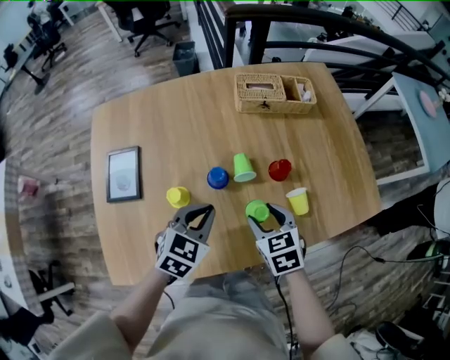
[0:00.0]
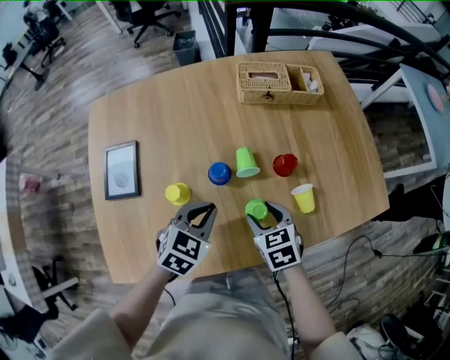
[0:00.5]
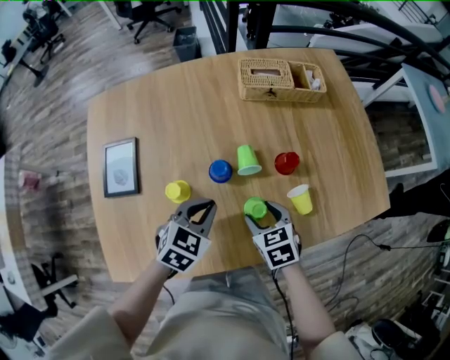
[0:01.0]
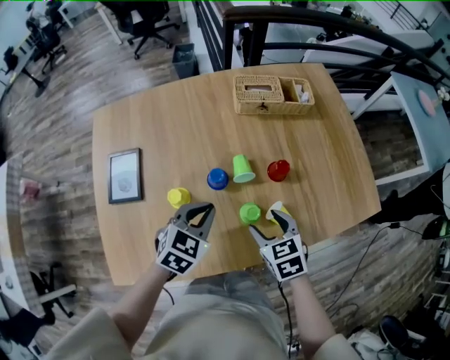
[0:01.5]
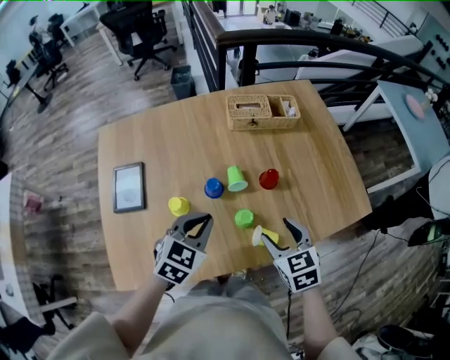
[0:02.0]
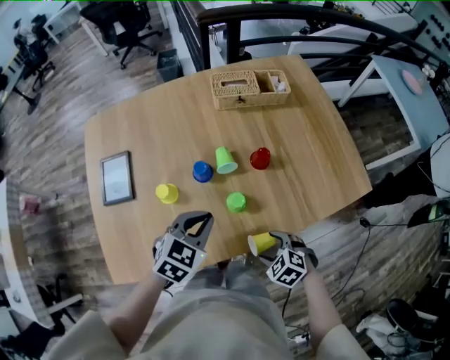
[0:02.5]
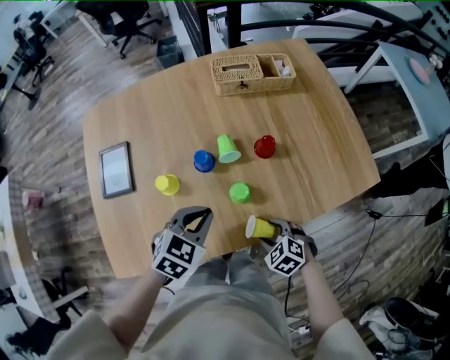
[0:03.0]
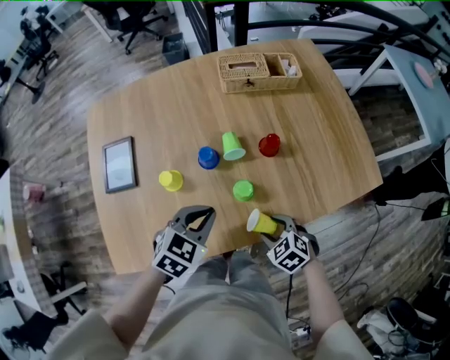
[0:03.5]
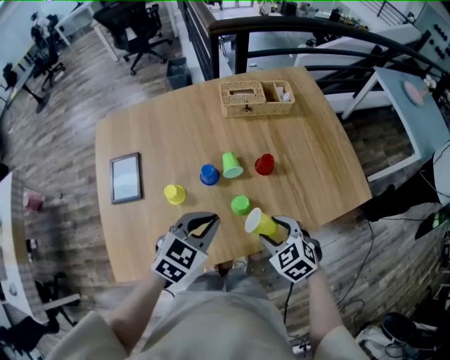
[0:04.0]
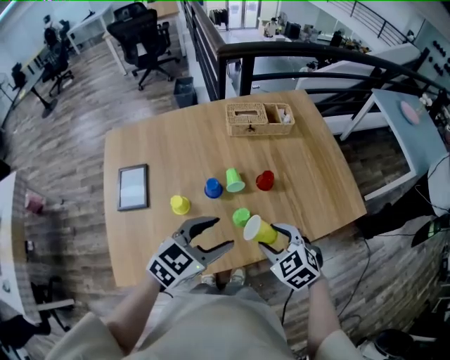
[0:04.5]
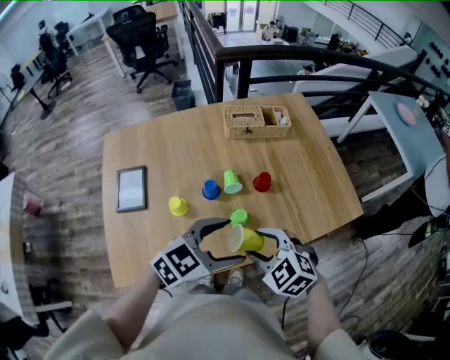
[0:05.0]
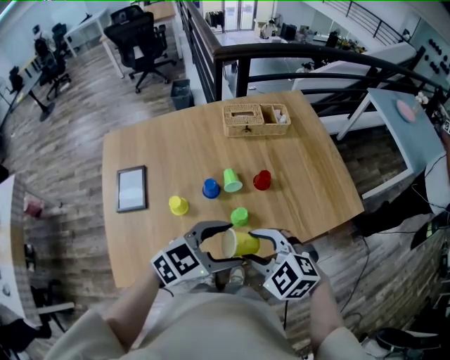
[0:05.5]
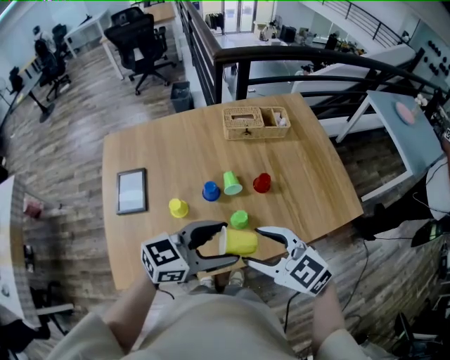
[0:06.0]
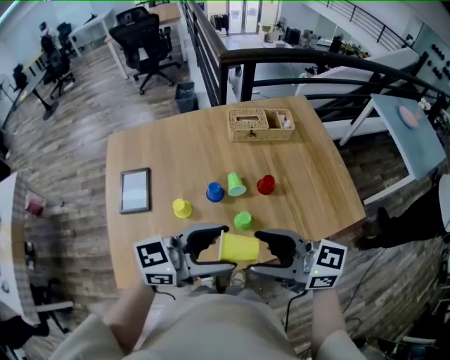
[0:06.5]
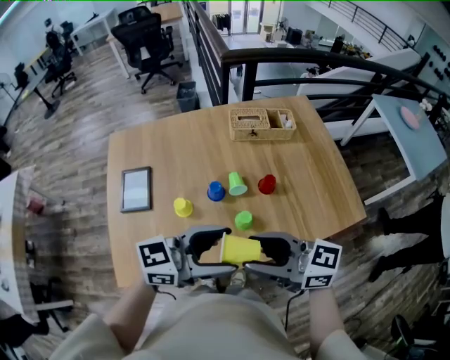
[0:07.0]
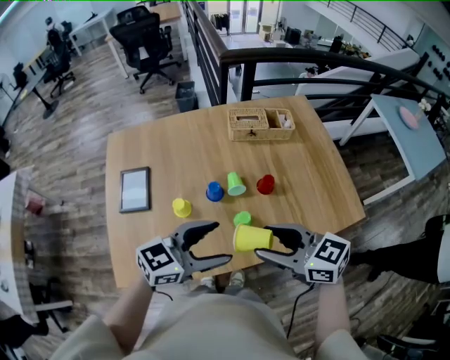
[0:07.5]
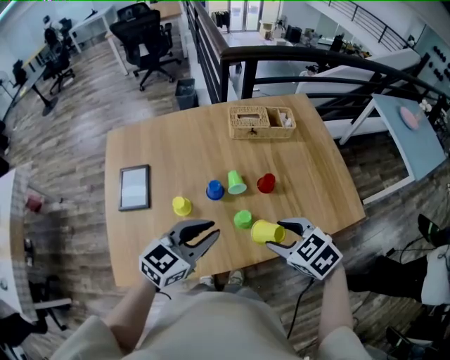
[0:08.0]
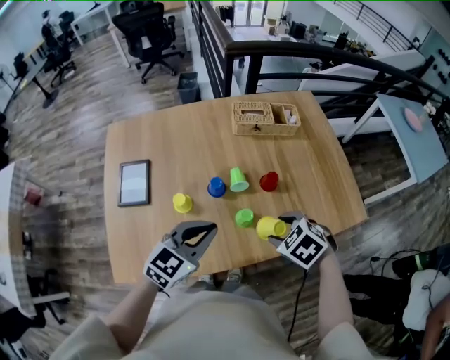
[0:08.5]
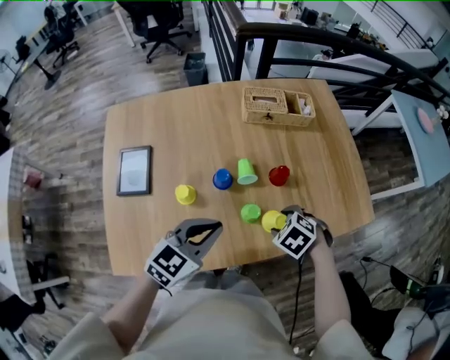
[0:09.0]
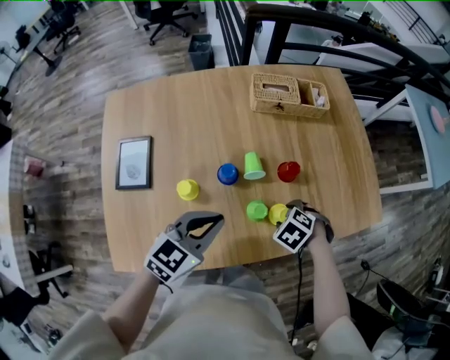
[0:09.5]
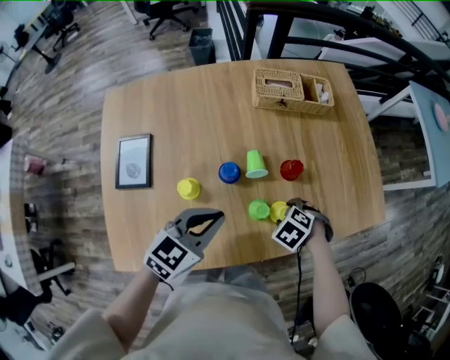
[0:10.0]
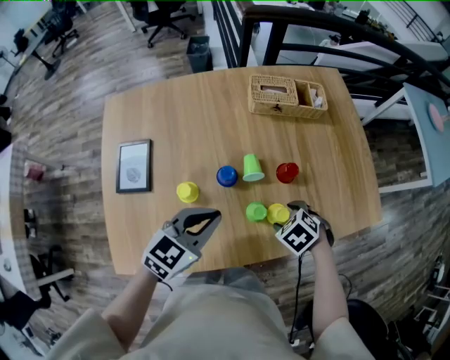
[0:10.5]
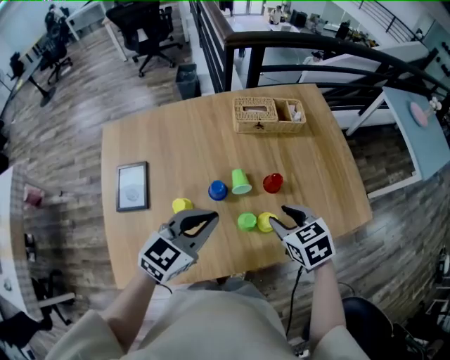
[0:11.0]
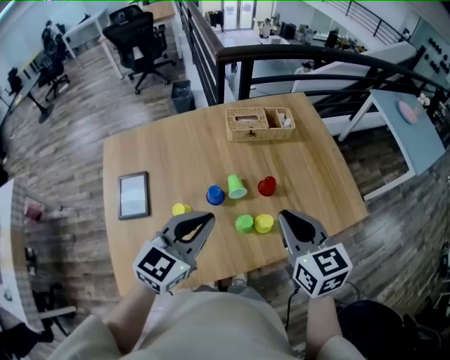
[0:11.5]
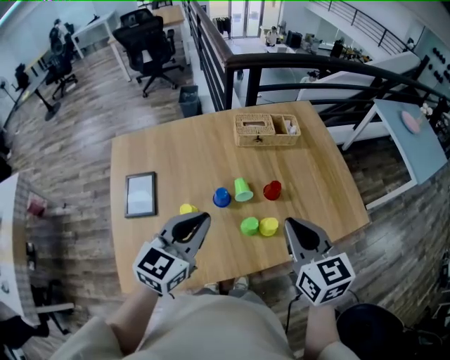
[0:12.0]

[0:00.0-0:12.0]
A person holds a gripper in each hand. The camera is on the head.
0:00.0 to 0:02.0: The left gripper moves upward, roughly 5 cm; the right gripper is displaced upward, to the right and backward by approximately 10 cm.
0:02.0 to 0:04.0: The left gripper changes place by about 5 cm. The right gripper goes downward and returns, some 20 cm each way, and rotates about 20 degrees.
0:04.0 to 0:06.0: The right gripper shifts roughly 15 cm upward, and changes its angle by about 30 degrees. Meanwhile the left gripper travels upward by about 10 cm, turns by about 40 degrees, and opens up.
0:06.0 to 0:08.0: The right gripper moves some 10 cm, and changes its angle by some 30 degrees; the left gripper ends up about 5 cm from where it was, changes its angle by roughly 20 degrees, and closes.
0:08.0 to 0:10.0: The left gripper goes roughly 10 cm downward; the right gripper shifts some 20 cm downward, and points its fingers about 30 degrees further downward.
0:10.0 to 0:12.0: The left gripper shifts some 15 cm upward. Meanwhile the right gripper is displaced upward by approximately 30 cm, points its fingers about 60 degrees further upward, and closes.

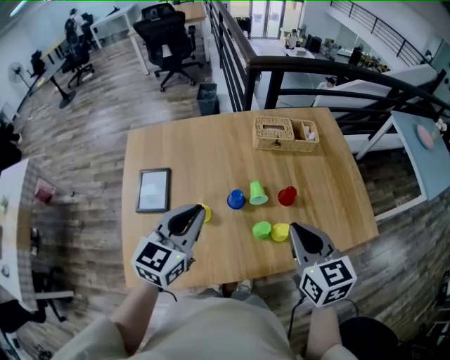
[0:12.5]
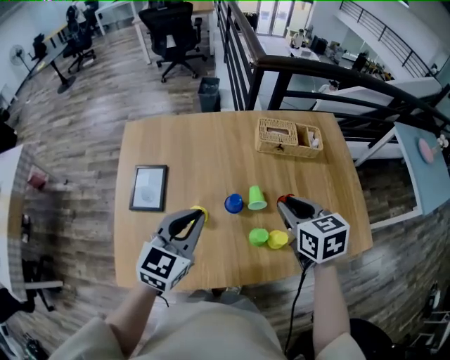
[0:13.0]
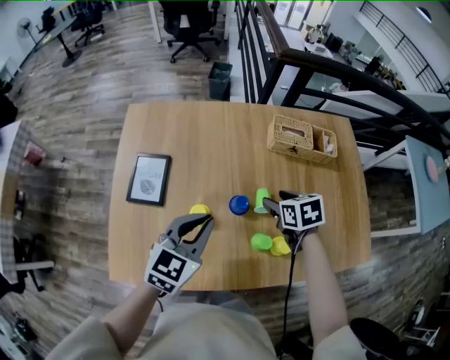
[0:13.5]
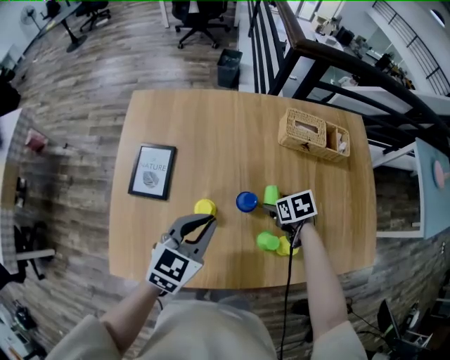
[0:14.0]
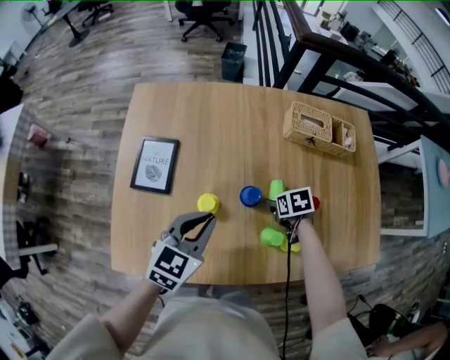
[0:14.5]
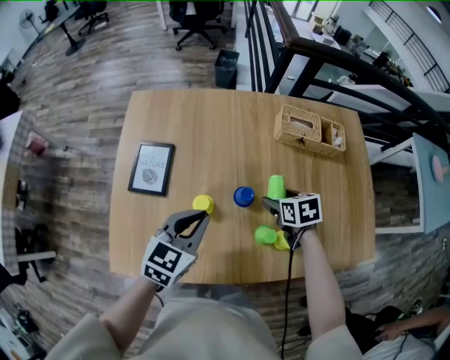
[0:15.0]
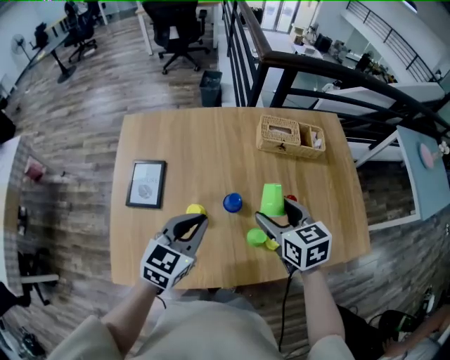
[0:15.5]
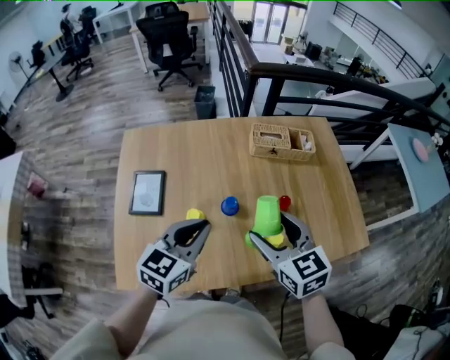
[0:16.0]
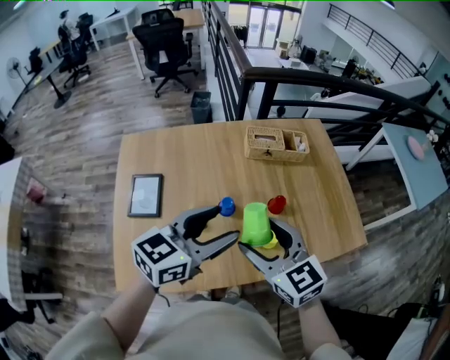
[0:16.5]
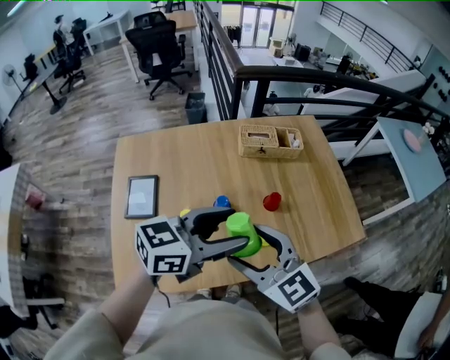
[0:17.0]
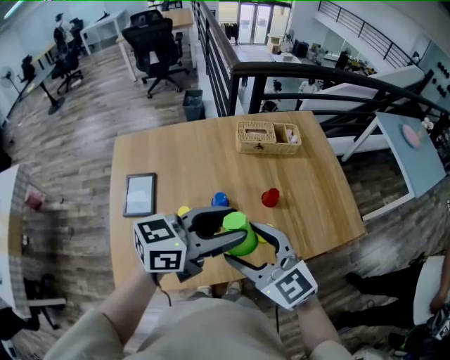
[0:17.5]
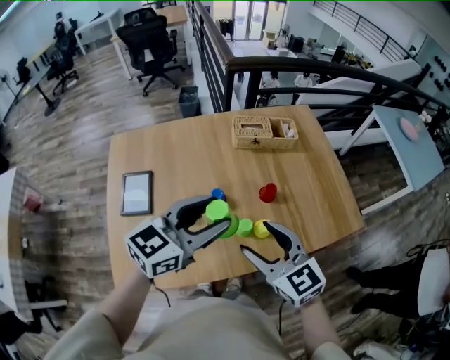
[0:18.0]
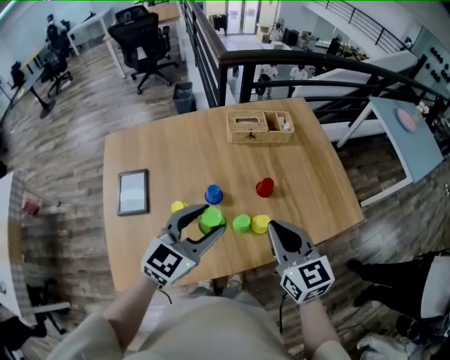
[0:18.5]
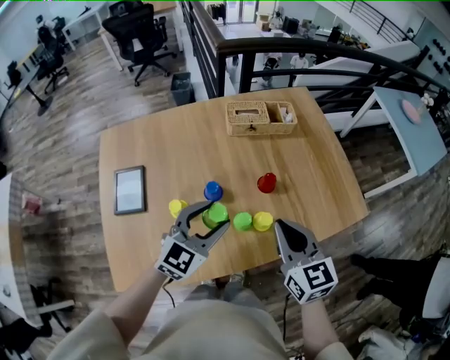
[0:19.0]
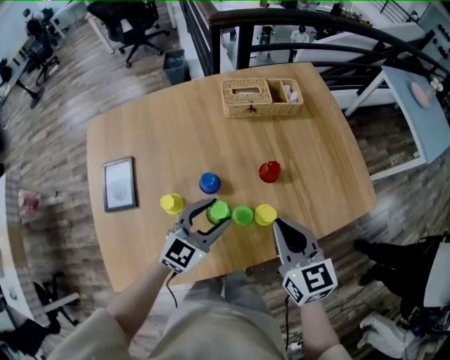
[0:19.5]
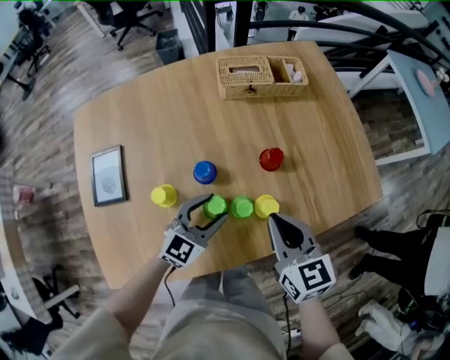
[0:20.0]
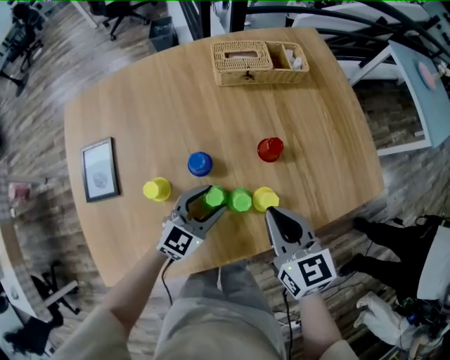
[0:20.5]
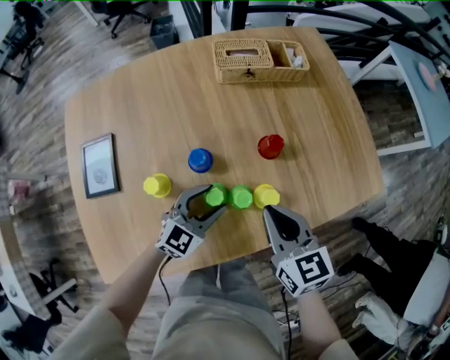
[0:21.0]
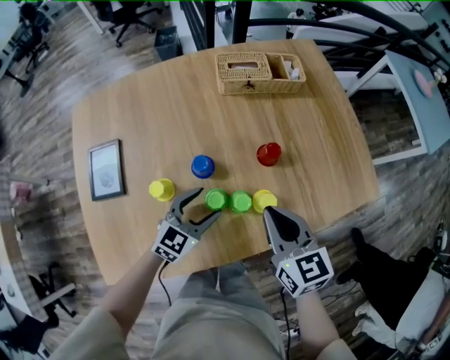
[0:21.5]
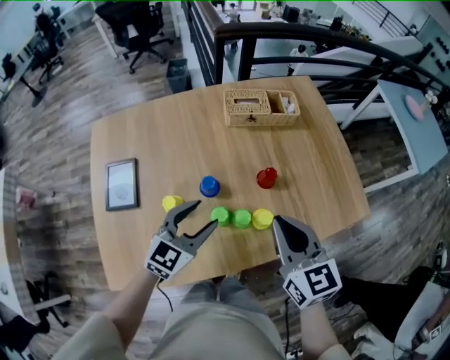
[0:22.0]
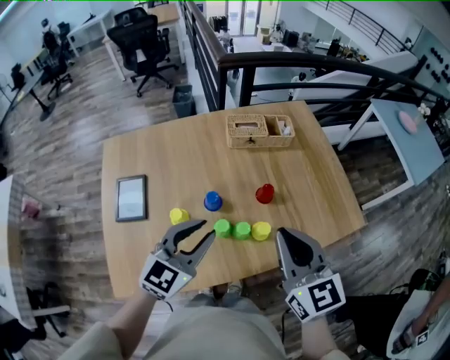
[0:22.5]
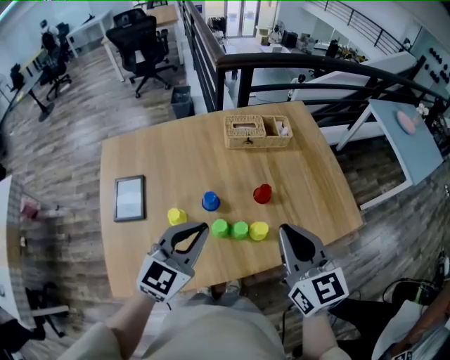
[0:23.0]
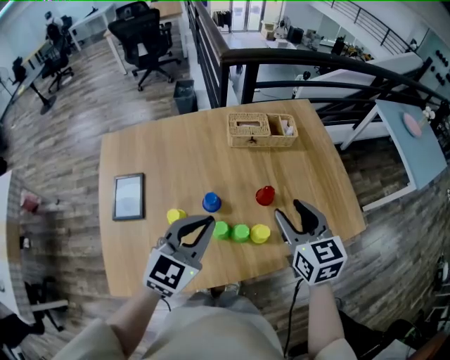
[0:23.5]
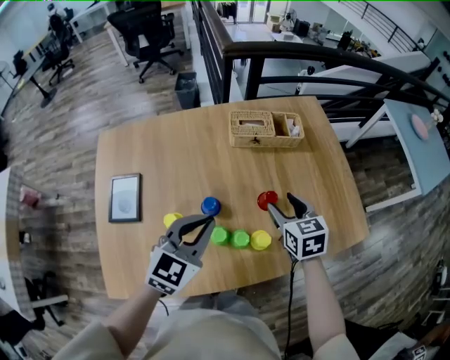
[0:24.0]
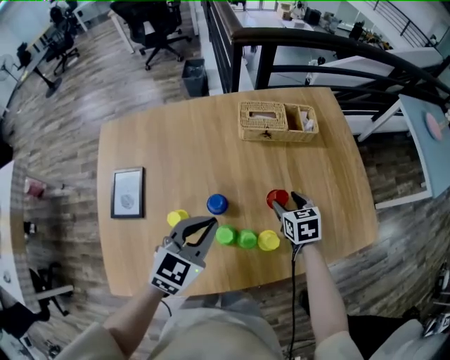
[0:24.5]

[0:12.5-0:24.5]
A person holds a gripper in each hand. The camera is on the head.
0:12.5 to 0:14.5: The right gripper travels downward and forward by some 35 cm, angles its fingers downward, by roughly 40 degrees, and opens up, while the left gripper heads downward, covering approximately 15 cm.
0:14.5 to 0:16.5: The left gripper goes approximately 20 cm upward and to the right, changes its angle by some 30 degrees, and opens up, while the right gripper travels upward and backward by roughly 40 cm, and points its fingers about 50 degrees further upward.
0:16.5 to 0:18.5: The right gripper is displaced to the right by about 10 cm, and closes up, while the left gripper travels downward by some 5 cm, and turns by approximately 20 degrees.
0:18.5 to 0:20.5: The left gripper moves downward, some 25 cm; the right gripper travels downward by about 15 cm.
0:20.5 to 0:22.5: The two grippers go about 25 cm upward.
0:22.5 to 0:24.5: The right gripper moves downward and forward, some 35 cm, angles its fingers downward, by approximately 40 degrees, and opens its fingers, while the left gripper moves forward and downward, about 10 cm.

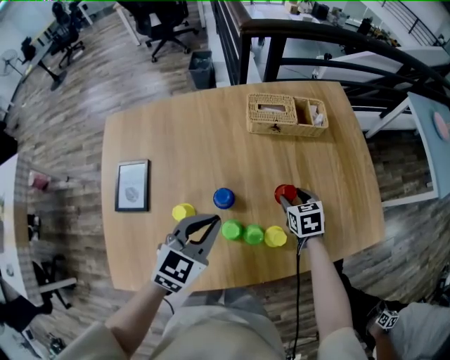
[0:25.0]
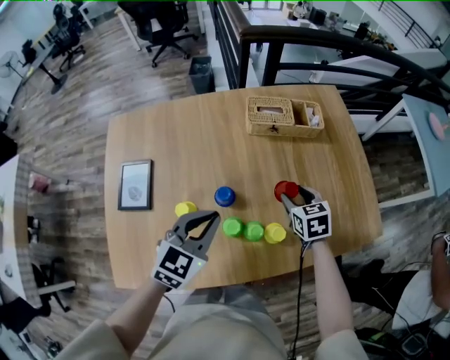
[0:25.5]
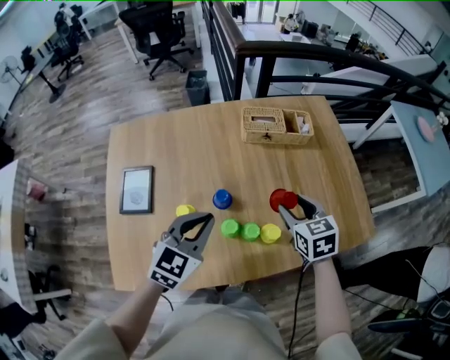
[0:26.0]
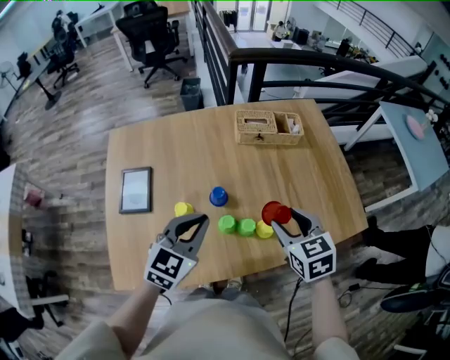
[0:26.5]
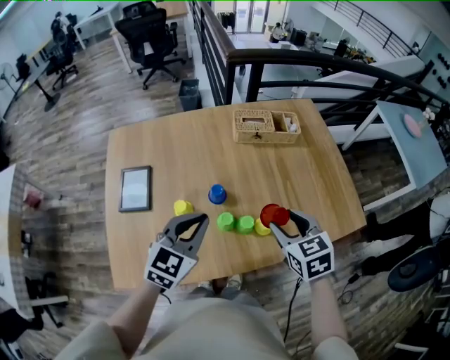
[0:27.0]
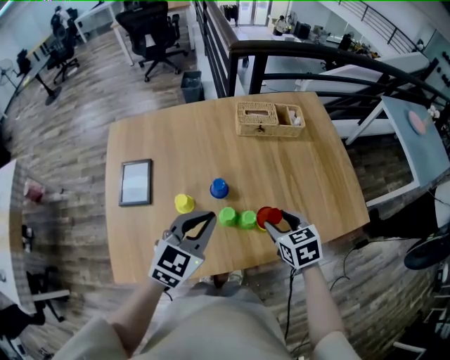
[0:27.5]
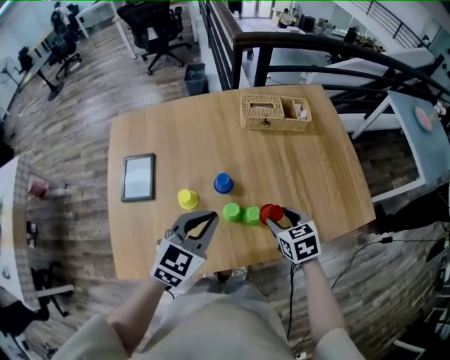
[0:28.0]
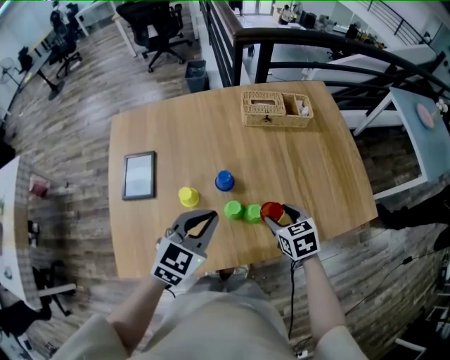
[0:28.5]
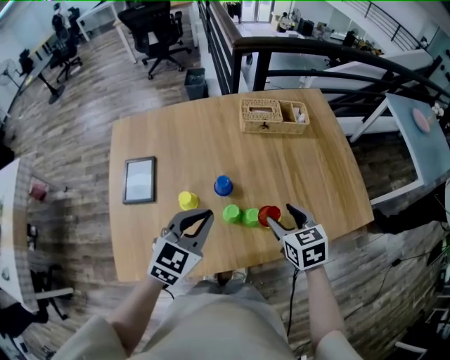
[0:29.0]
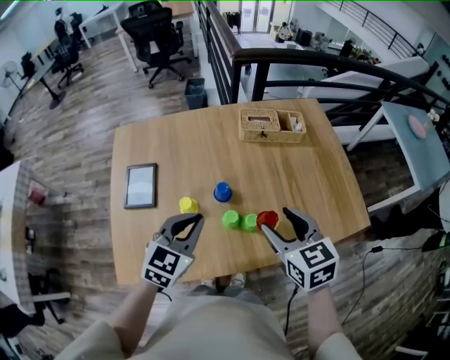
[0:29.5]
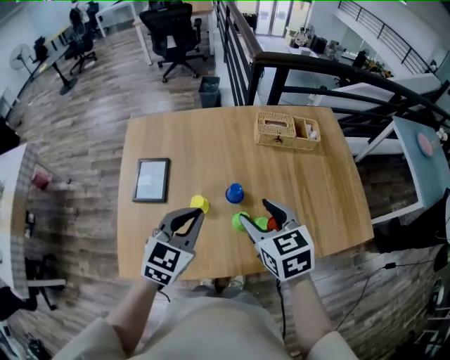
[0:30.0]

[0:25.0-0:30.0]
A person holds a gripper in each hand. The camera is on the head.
0:25.0 to 0:27.5: The right gripper shifts some 20 cm backward and upward. The left gripper moves backward and upward, roughly 10 cm.
0:27.5 to 0:30.0: The left gripper travels to the left by about 10 cm. The right gripper shifts about 20 cm to the left and upward.
